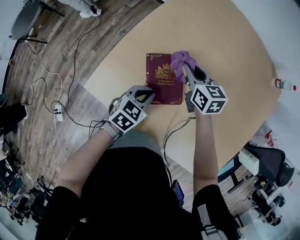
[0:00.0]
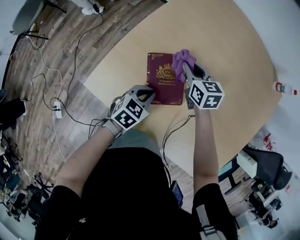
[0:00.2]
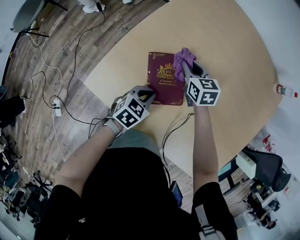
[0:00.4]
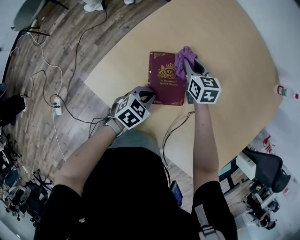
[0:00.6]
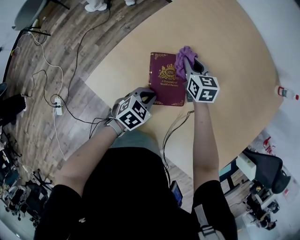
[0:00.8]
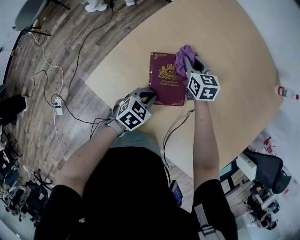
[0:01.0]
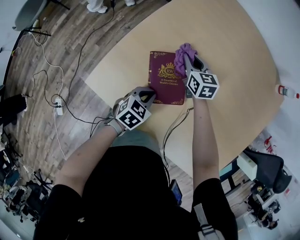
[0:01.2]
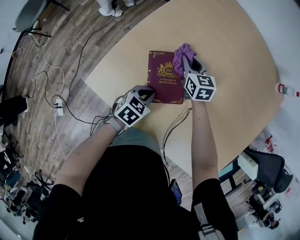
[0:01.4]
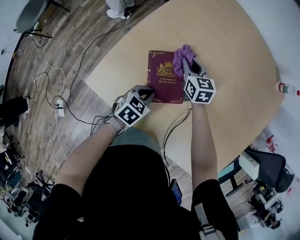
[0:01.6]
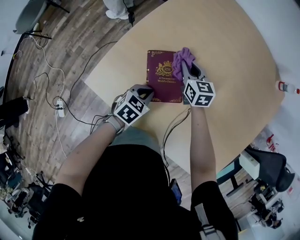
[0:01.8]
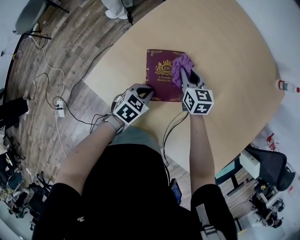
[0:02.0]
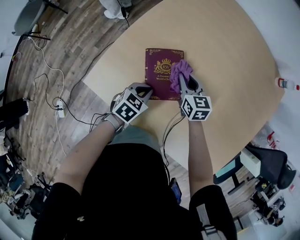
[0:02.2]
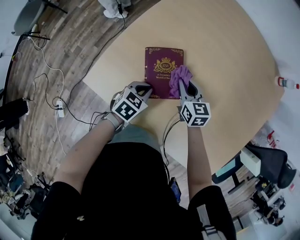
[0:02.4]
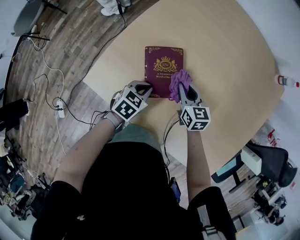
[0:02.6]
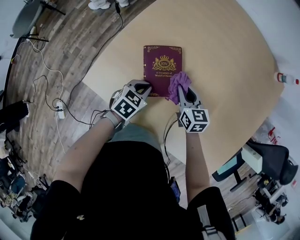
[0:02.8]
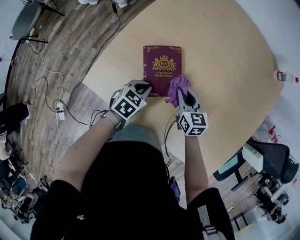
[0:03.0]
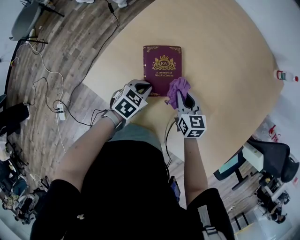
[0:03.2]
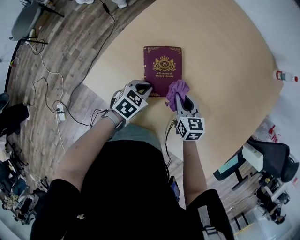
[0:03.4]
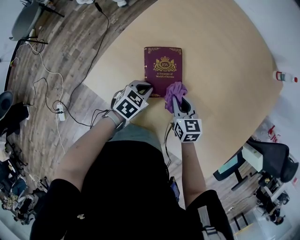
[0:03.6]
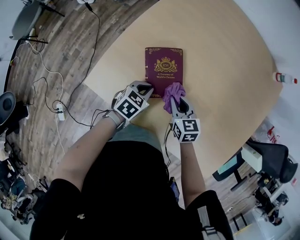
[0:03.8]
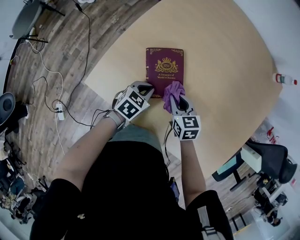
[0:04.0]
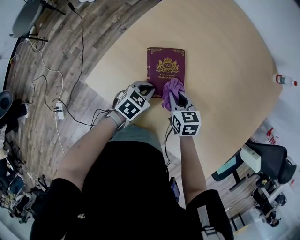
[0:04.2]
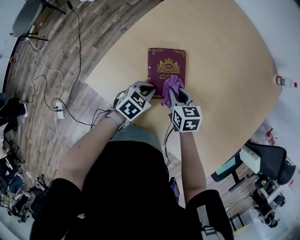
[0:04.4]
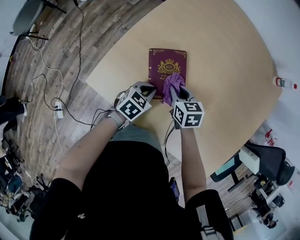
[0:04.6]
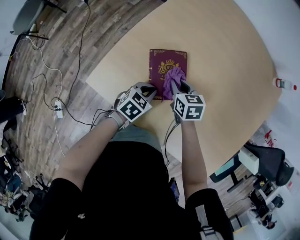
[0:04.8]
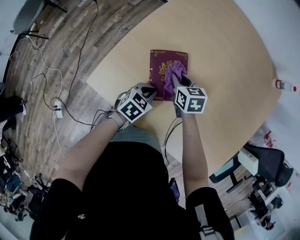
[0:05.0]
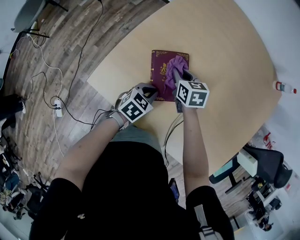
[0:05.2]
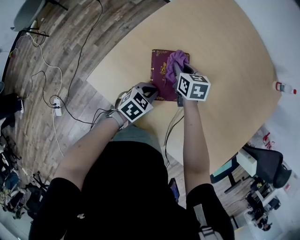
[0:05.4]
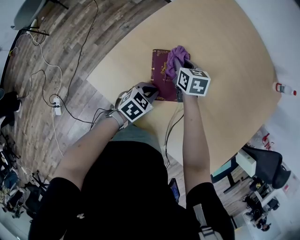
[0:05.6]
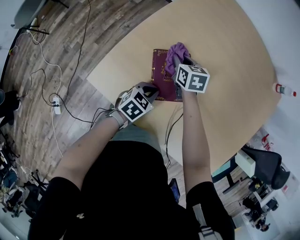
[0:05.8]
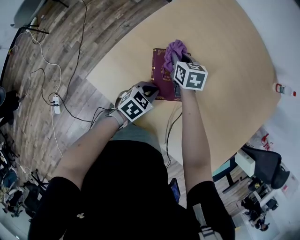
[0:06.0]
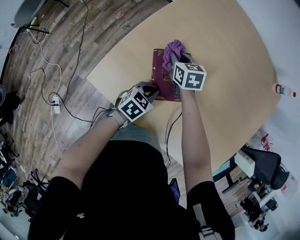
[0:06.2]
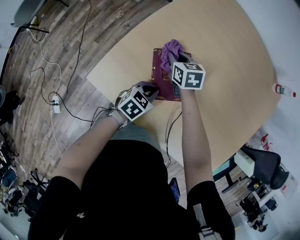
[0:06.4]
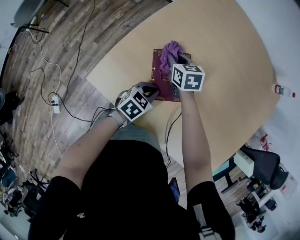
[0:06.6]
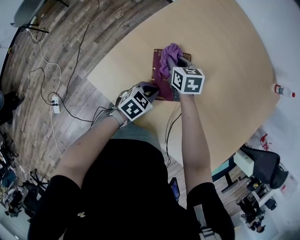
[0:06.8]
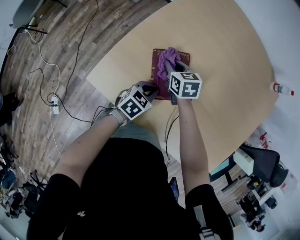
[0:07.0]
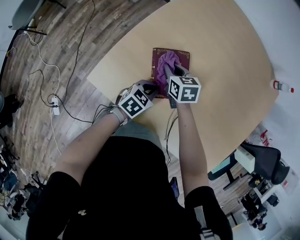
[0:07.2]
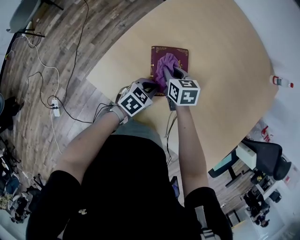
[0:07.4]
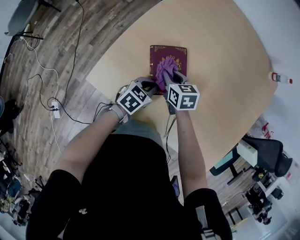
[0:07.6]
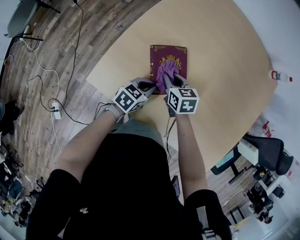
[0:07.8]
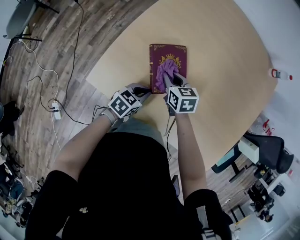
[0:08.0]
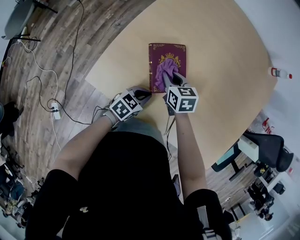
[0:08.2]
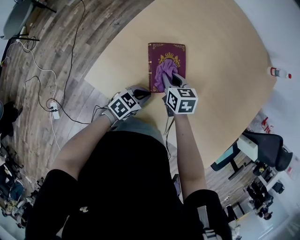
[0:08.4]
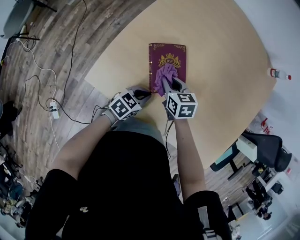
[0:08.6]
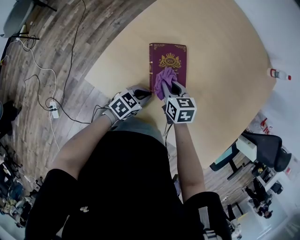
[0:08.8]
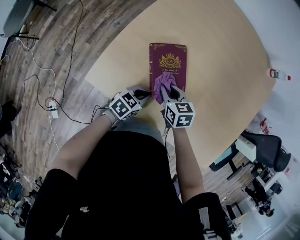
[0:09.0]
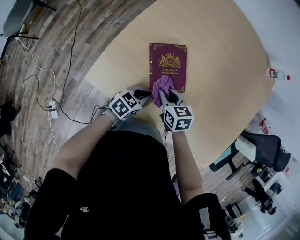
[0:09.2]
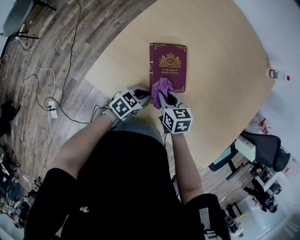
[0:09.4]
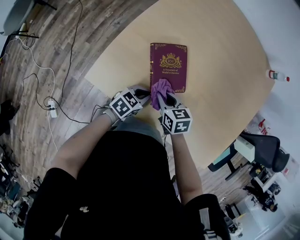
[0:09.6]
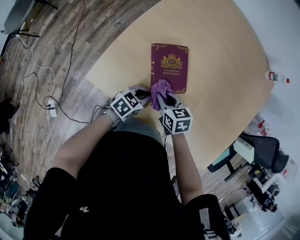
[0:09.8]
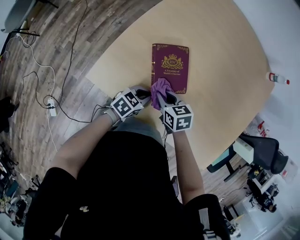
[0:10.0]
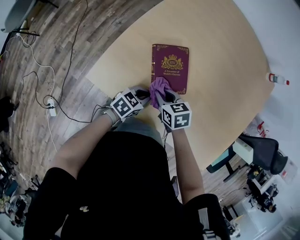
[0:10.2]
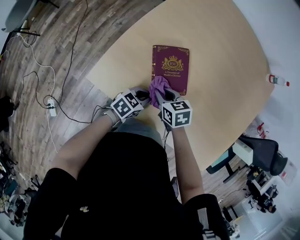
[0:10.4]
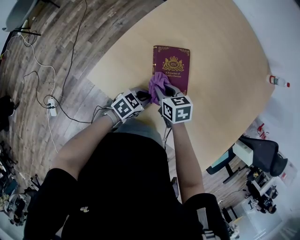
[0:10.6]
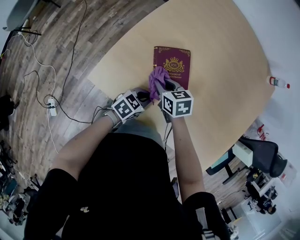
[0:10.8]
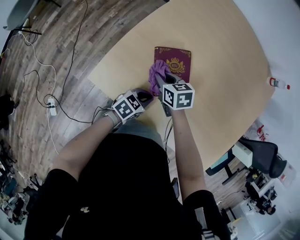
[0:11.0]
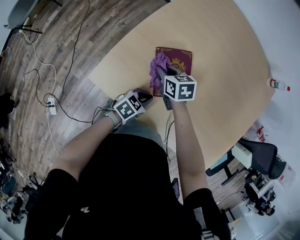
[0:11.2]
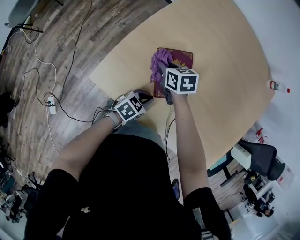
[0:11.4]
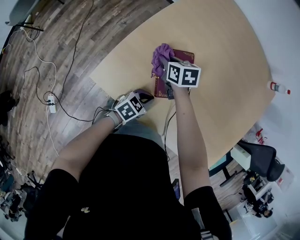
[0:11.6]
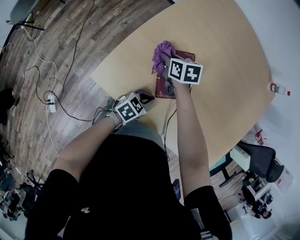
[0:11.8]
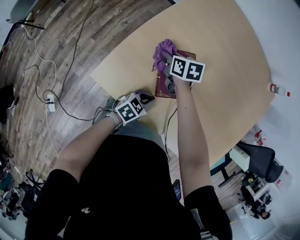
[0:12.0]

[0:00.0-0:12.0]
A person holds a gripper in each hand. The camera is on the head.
0:00.0 to 0:01.6: Both grippers move downward, some 5 cm.
0:01.6 to 0:03.0: The right gripper moves backward and to the right, about 15 cm.
0:03.0 to 0:04.4: The right gripper heads to the left, covering some 5 cm.
0:04.4 to 0:06.0: The right gripper travels forward and to the left by about 15 cm.
0:06.0 to 0:07.6: The right gripper moves backward, roughly 10 cm.
0:07.6 to 0:09.0: Both grippers travel together backward, some 5 cm.
0:09.0 to 0:10.4: There are only small adjustments of the grippers.
0:10.4 to 0:12.0: The right gripper shifts roughly 20 cm forward and to the left.

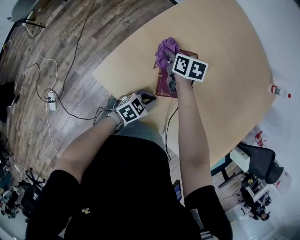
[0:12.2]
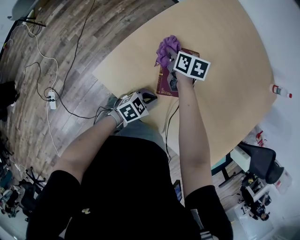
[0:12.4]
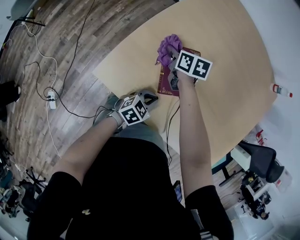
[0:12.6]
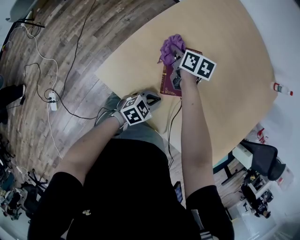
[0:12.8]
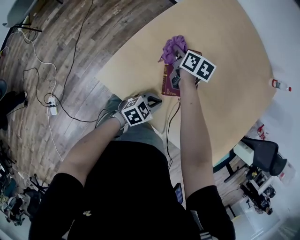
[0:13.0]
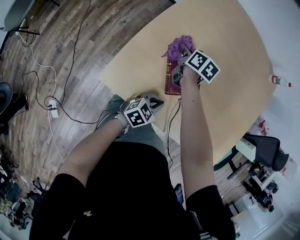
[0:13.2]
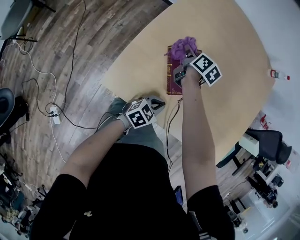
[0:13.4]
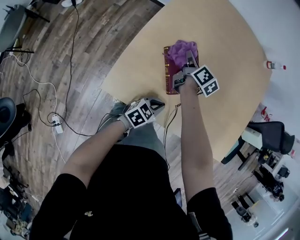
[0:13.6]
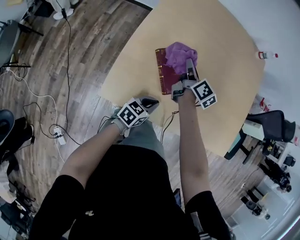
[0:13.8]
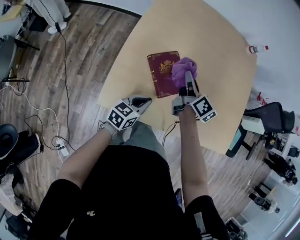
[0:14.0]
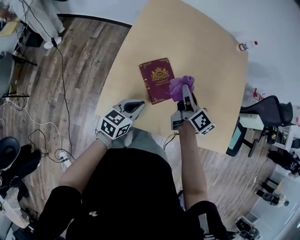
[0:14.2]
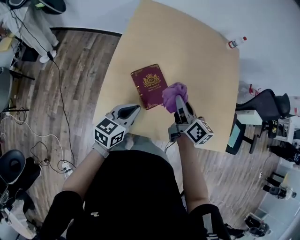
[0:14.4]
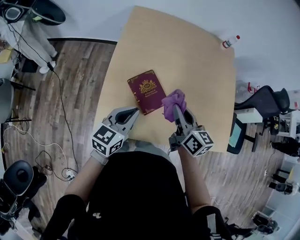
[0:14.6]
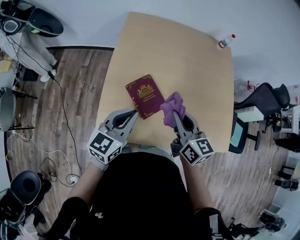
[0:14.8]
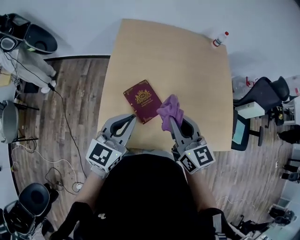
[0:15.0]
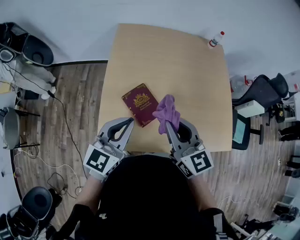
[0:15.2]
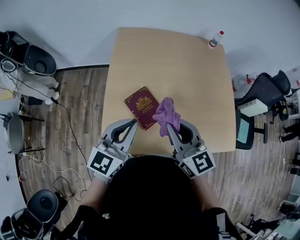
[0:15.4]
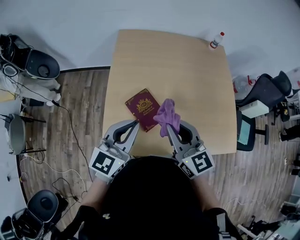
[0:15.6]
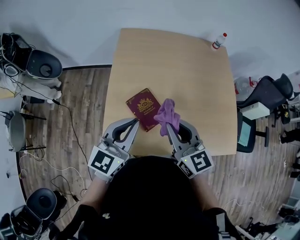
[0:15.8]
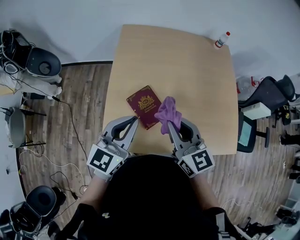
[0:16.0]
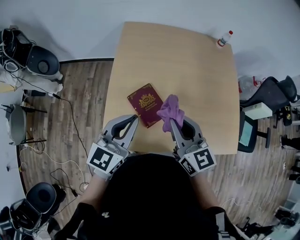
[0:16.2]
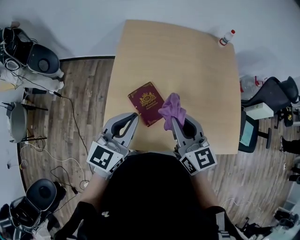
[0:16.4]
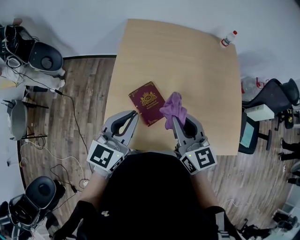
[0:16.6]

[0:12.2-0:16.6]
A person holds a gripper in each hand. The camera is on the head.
0:12.2 to 0:13.6: The right gripper shifts by about 10 cm, and turns by roughly 50 degrees.
0:13.6 to 0:15.2: The left gripper moves upward, approximately 35 cm, and rotates roughly 40 degrees; the right gripper shifts roughly 35 cm upward and backward, and rolls counterclockwise, seen from behind, by roughly 40 degrees.
0:15.2 to 0:16.6: The grippers make only small movements.

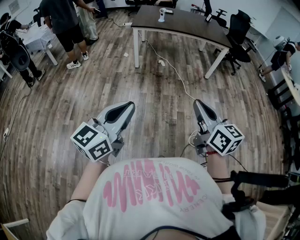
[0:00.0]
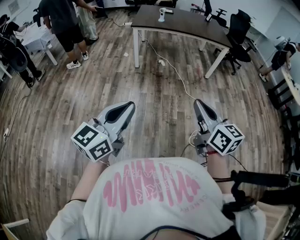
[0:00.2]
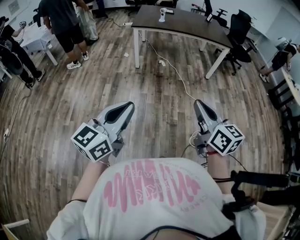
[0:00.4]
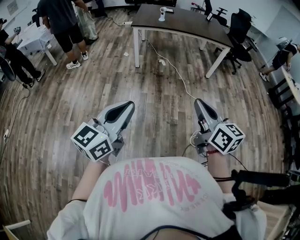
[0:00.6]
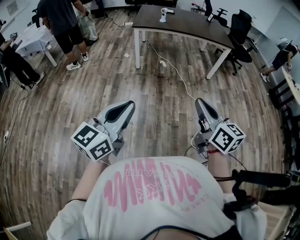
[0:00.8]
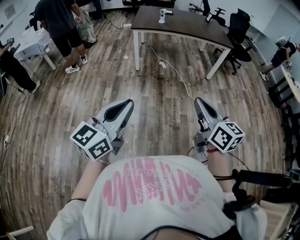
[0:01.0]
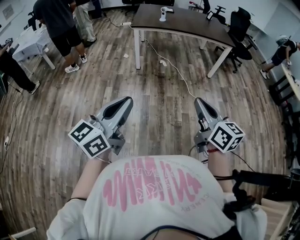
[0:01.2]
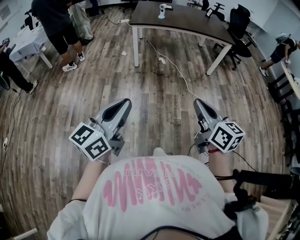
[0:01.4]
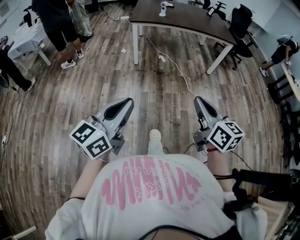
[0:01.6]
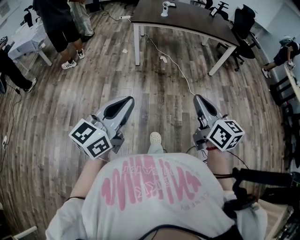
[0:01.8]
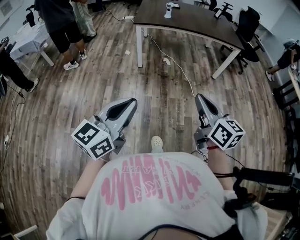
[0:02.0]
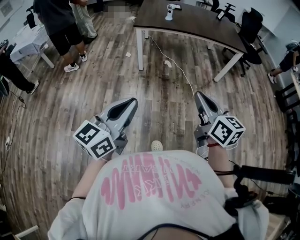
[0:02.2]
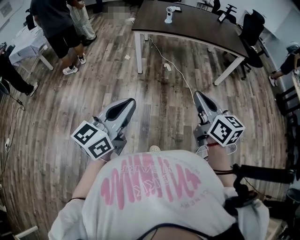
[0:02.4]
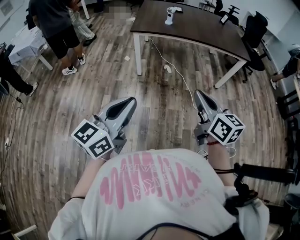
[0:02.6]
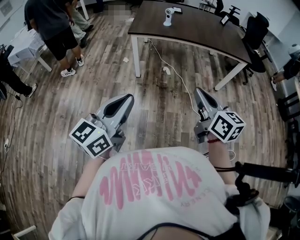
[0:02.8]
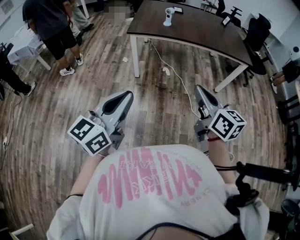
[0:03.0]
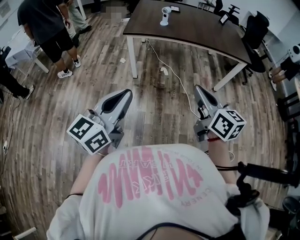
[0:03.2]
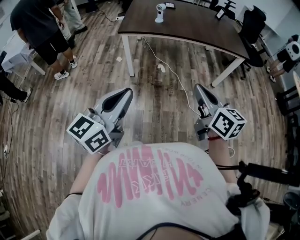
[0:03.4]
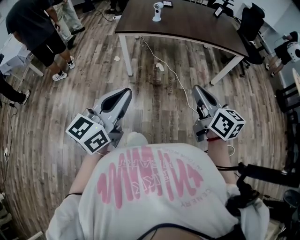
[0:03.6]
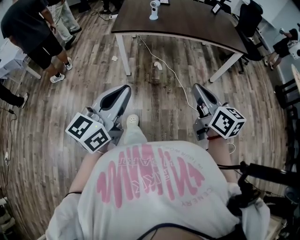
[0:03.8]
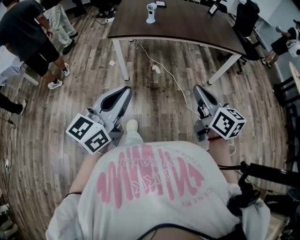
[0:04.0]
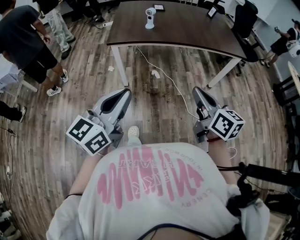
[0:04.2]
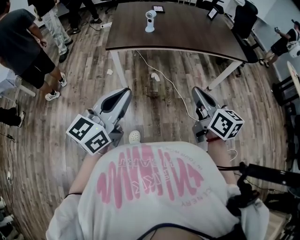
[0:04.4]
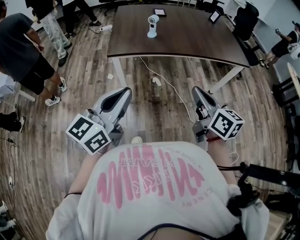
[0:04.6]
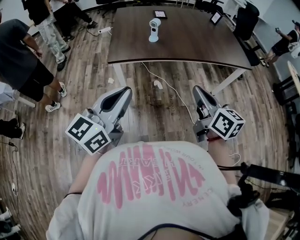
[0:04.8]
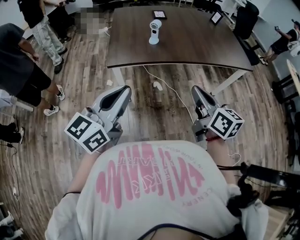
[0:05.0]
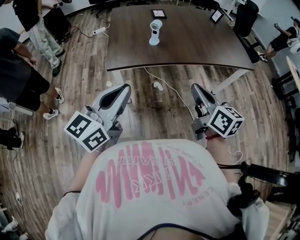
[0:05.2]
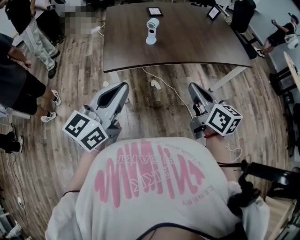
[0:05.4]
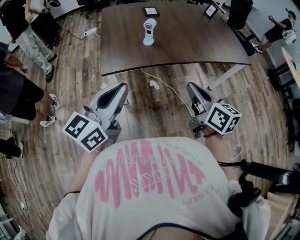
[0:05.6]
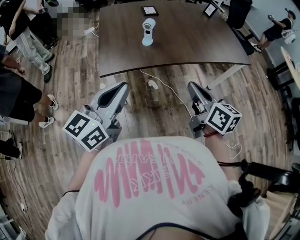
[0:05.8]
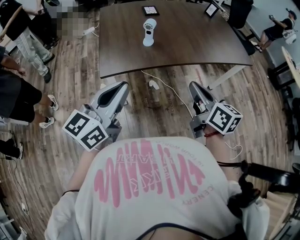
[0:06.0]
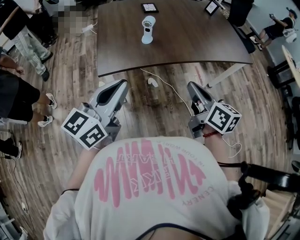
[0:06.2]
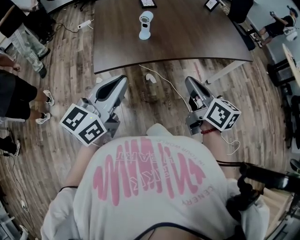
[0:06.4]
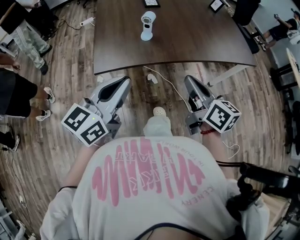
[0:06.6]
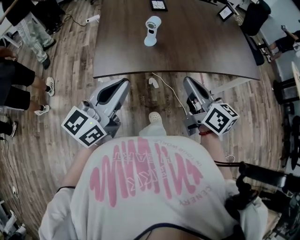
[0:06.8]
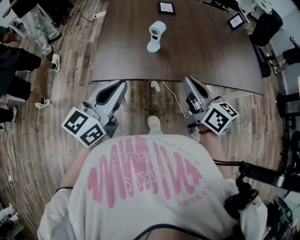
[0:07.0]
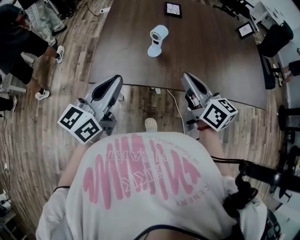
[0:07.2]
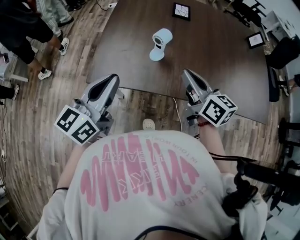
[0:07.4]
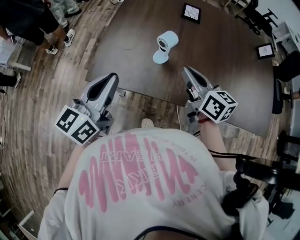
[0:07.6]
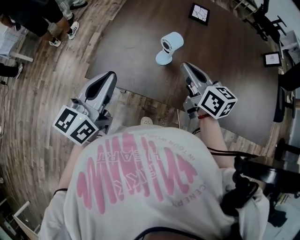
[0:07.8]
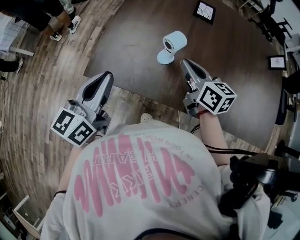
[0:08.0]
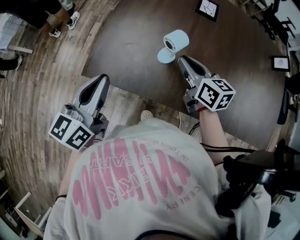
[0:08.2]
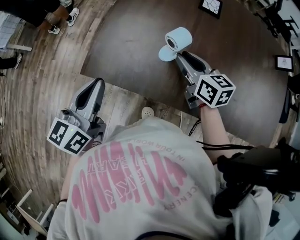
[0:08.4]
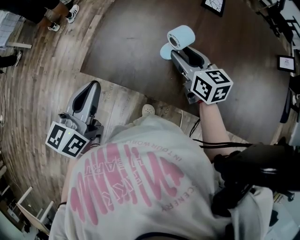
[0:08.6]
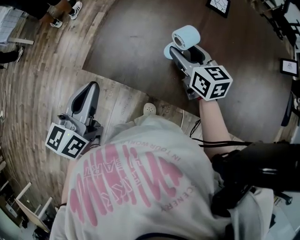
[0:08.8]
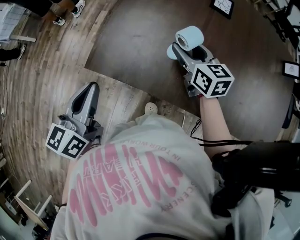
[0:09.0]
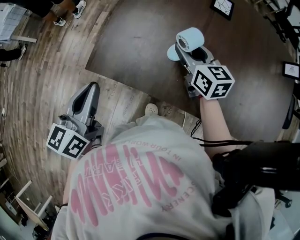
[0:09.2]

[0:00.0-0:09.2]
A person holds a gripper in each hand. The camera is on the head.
0:00.0 to 0:01.6: The grippers both shift forward and to the left by about 10 cm.
0:01.6 to 0:03.0: Both grippers travel together forward, approximately 30 cm.
0:03.0 to 0:04.6: Both grippers travel together forward, some 25 cm.
0:04.6 to 0:06.2: The left gripper goes roughly 20 cm forward; the right gripper shifts about 20 cm forward and to the left.
0:06.2 to 0:07.6: The right gripper changes place by approximately 35 cm, and turns by roughly 30 degrees. Meanwhile the left gripper shifts by approximately 20 cm, and swivels some 30 degrees.
0:07.6 to 0:09.2: The right gripper moves forward and downward, roughly 15 cm, and opens up, while the left gripper moves downward and to the left, roughly 10 cm, and swivels approximately 20 degrees.
